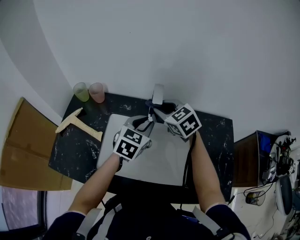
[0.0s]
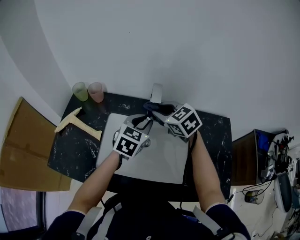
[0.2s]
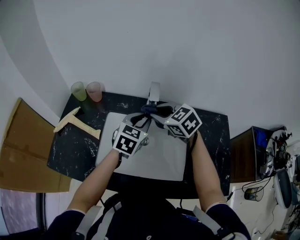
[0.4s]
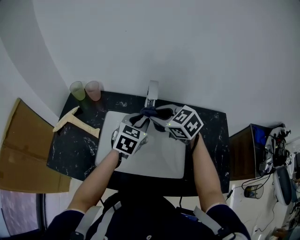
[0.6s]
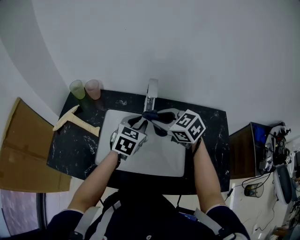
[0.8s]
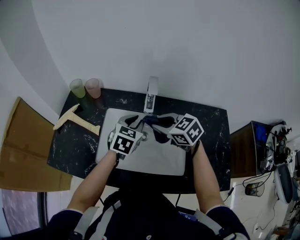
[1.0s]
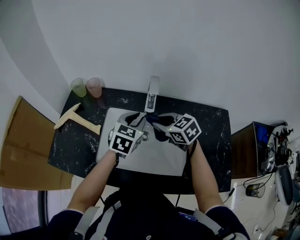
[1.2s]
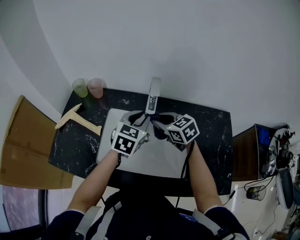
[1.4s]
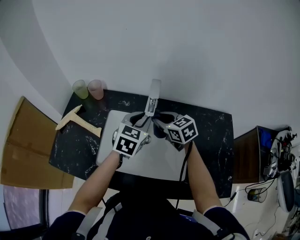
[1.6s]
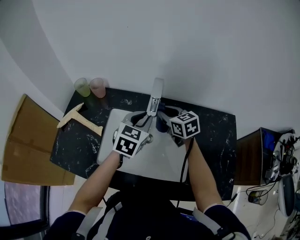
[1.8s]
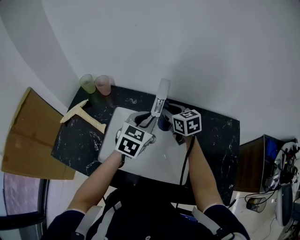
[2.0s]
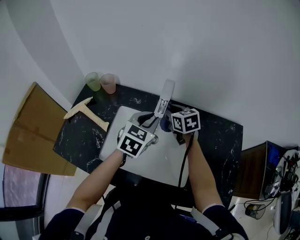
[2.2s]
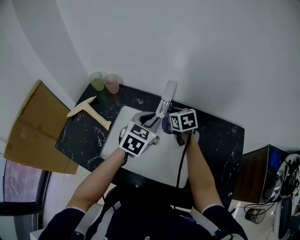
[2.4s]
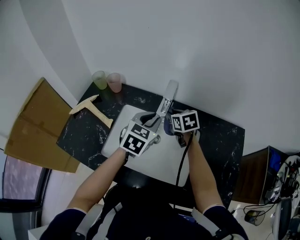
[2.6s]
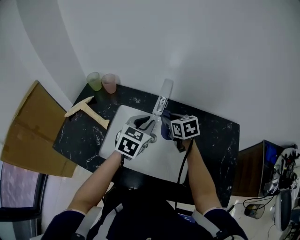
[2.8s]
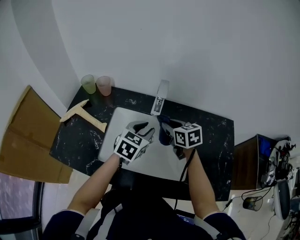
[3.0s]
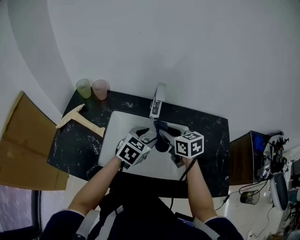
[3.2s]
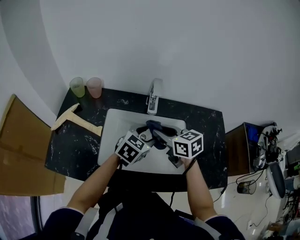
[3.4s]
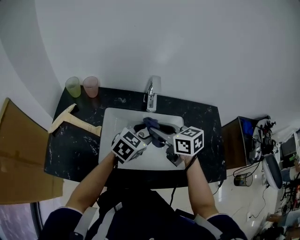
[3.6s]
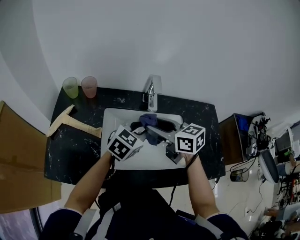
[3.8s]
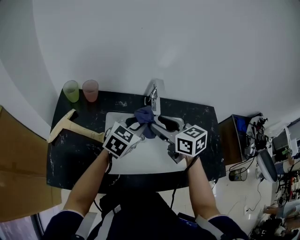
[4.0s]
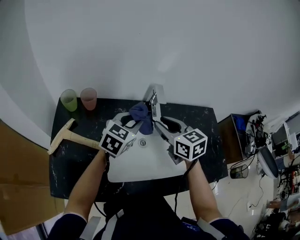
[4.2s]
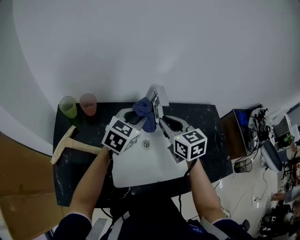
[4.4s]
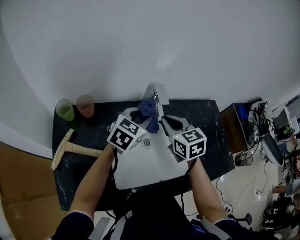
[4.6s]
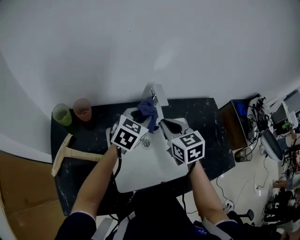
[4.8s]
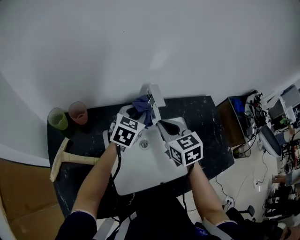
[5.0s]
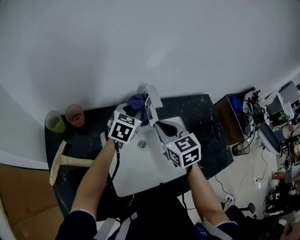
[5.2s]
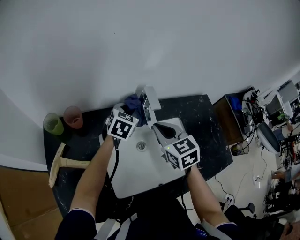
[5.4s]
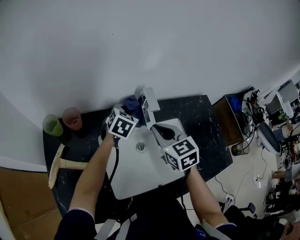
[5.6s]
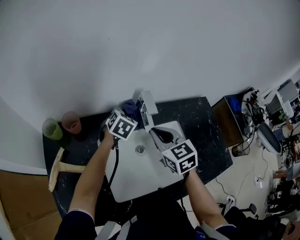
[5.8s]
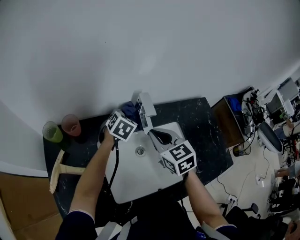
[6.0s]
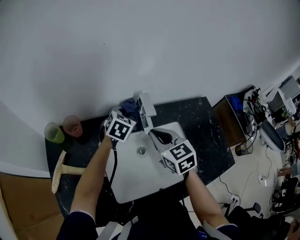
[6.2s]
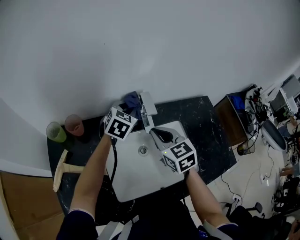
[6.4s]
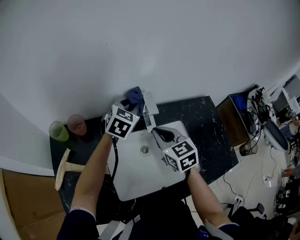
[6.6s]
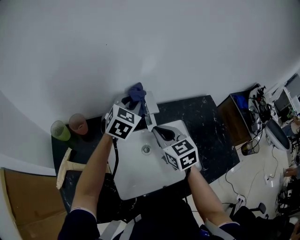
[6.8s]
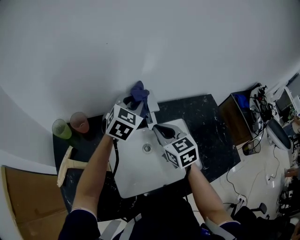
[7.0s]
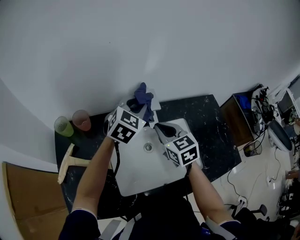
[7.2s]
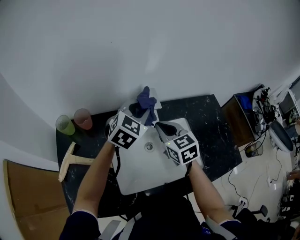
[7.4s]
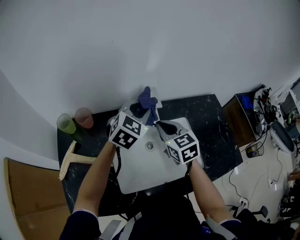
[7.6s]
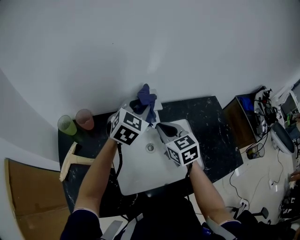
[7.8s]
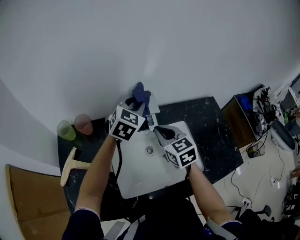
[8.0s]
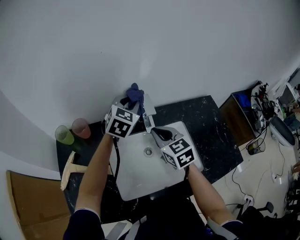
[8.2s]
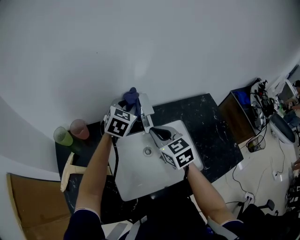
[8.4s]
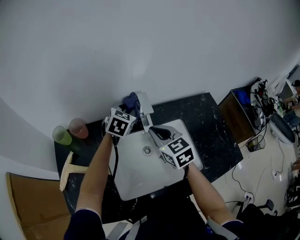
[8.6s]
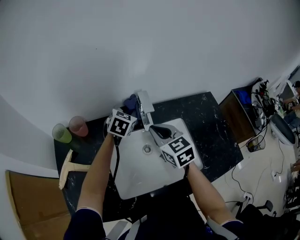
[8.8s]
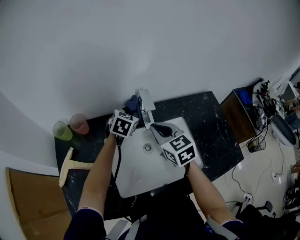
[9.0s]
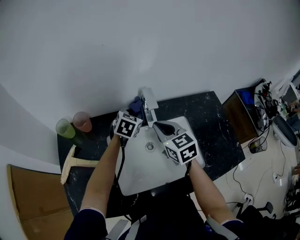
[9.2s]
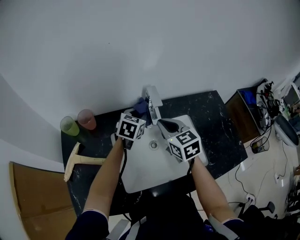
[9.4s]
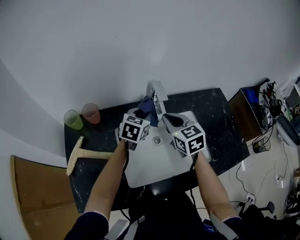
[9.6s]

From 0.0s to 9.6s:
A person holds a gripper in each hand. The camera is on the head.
From 0.0s to 1.6s: The right gripper heads downward, covering about 5 cm.
From 1.6s to 3.2s: The grippers both shift backward by about 5 cm. The left gripper opens up.
From 3.2s to 4.8s: The left gripper goes roughly 10 cm forward and to the left, and closes up. The right gripper travels backward and back again, roughly 5 cm each way, swivels about 30 degrees, and opens and closes again.
From 4.8s to 6.4s: The left gripper moves forward, approximately 10 cm, and travels downward and back again, roughly 10 cm each way.
From 6.4s to 8.0s: The left gripper shifts some 10 cm upward.
From 8.0s to 9.6s: The left gripper shifts about 10 cm downward and backward, and turns by approximately 20 degrees.

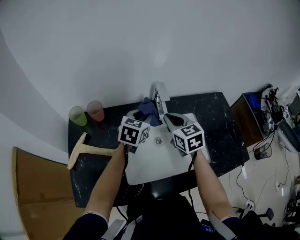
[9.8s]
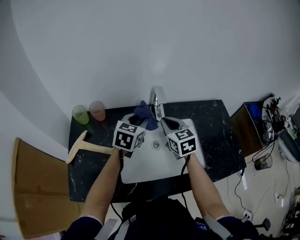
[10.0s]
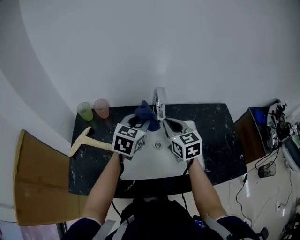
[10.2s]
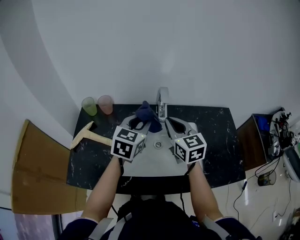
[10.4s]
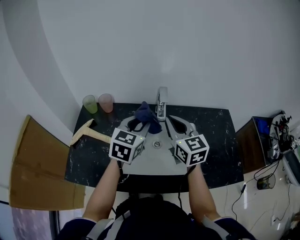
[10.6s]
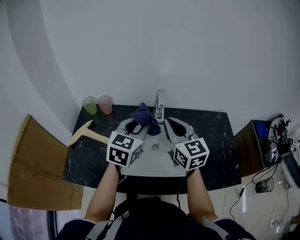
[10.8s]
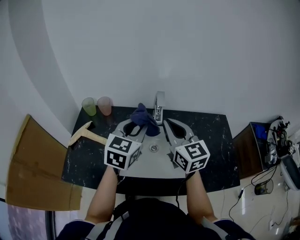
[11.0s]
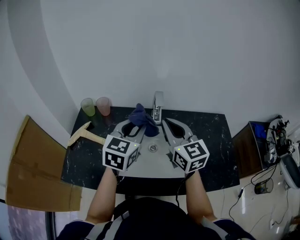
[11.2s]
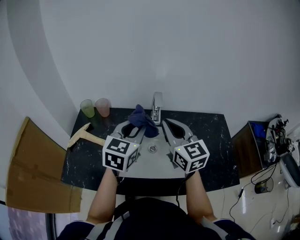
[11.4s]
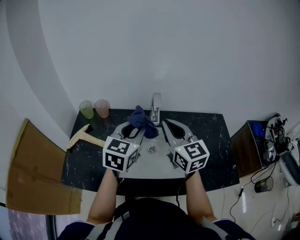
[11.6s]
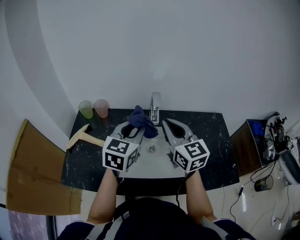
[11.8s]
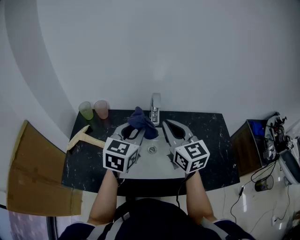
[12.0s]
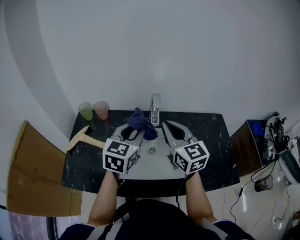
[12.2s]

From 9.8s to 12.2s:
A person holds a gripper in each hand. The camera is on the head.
From 9.8s to 11.0s: The grippers both shift upward and backward by approximately 15 cm. The right gripper rotates roughly 30 degrees, while the left gripper swivels approximately 20 degrees.
From 11.0s to 12.2s: Both grippers stay about where they are.

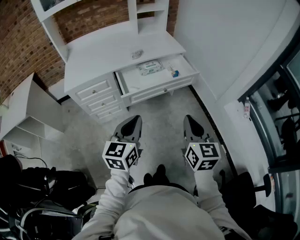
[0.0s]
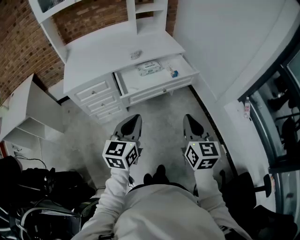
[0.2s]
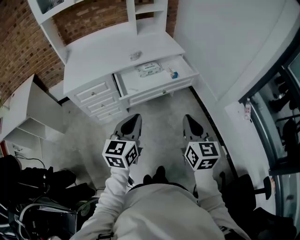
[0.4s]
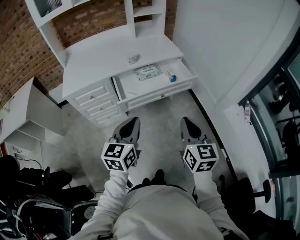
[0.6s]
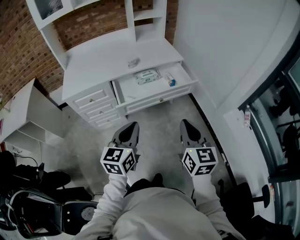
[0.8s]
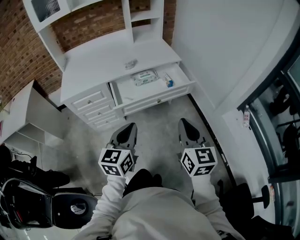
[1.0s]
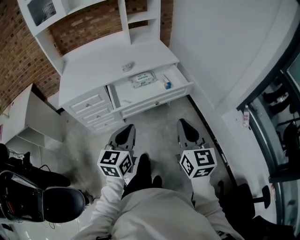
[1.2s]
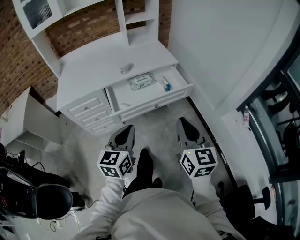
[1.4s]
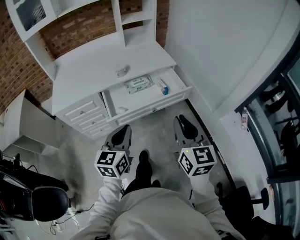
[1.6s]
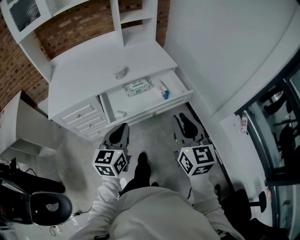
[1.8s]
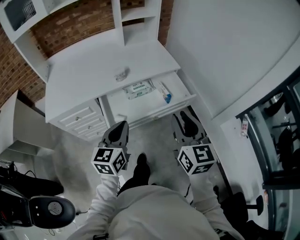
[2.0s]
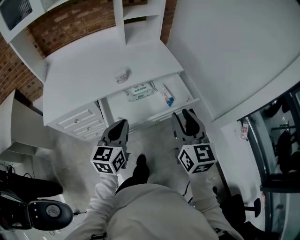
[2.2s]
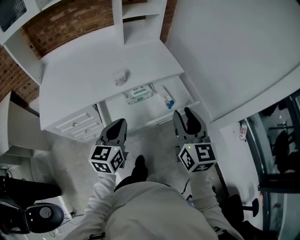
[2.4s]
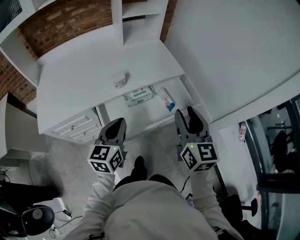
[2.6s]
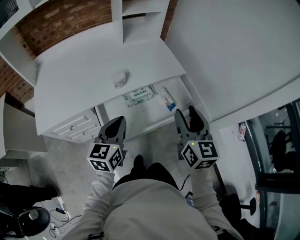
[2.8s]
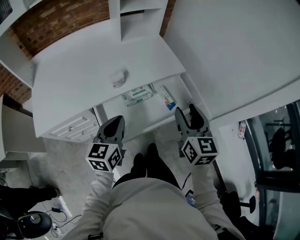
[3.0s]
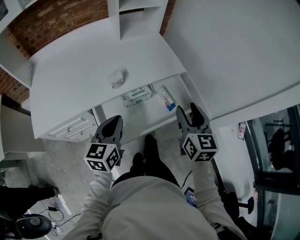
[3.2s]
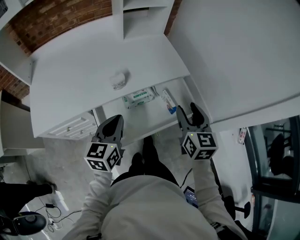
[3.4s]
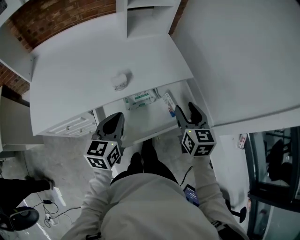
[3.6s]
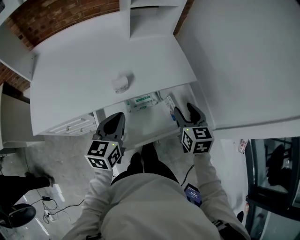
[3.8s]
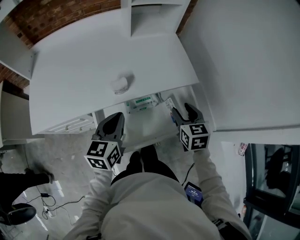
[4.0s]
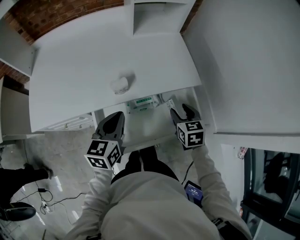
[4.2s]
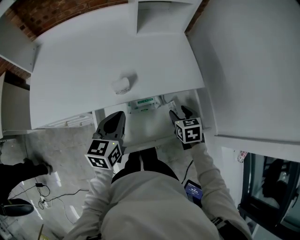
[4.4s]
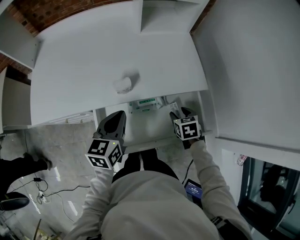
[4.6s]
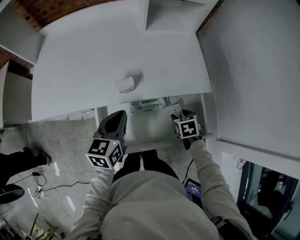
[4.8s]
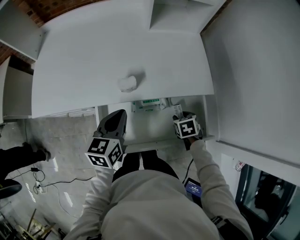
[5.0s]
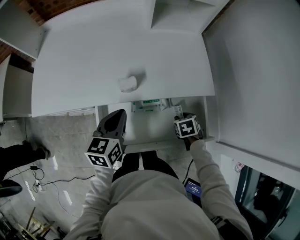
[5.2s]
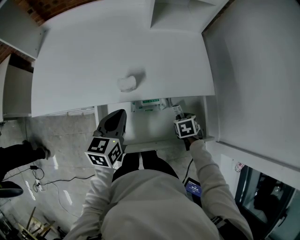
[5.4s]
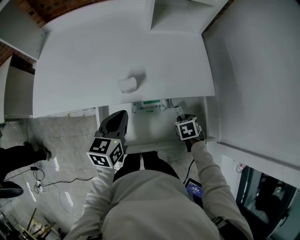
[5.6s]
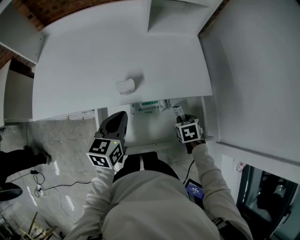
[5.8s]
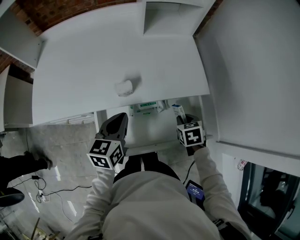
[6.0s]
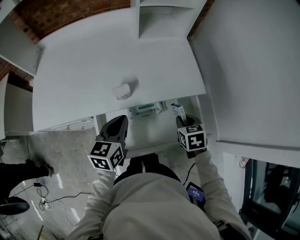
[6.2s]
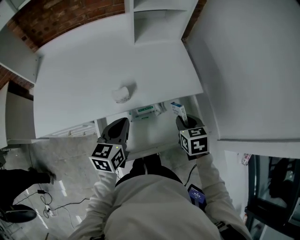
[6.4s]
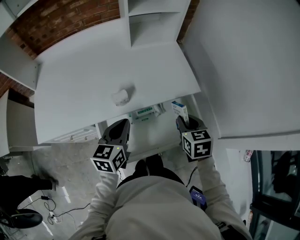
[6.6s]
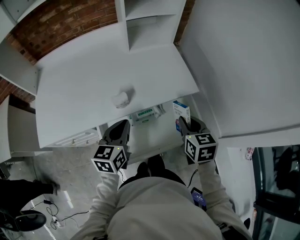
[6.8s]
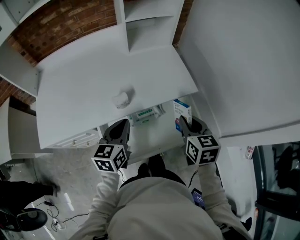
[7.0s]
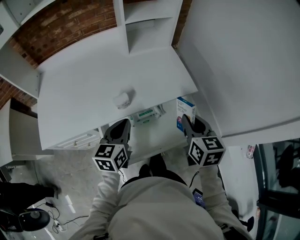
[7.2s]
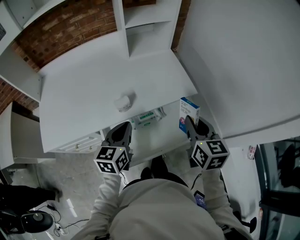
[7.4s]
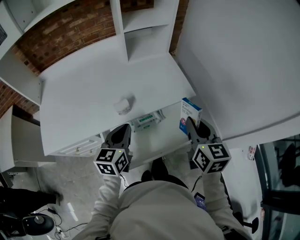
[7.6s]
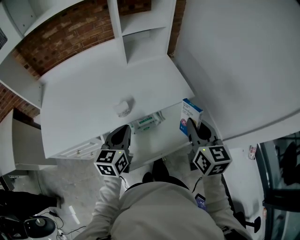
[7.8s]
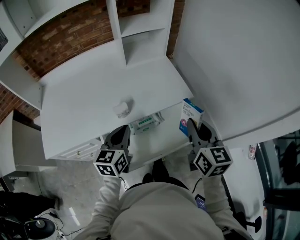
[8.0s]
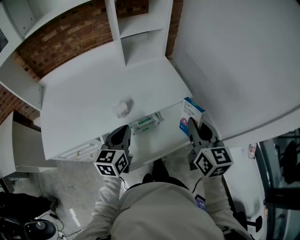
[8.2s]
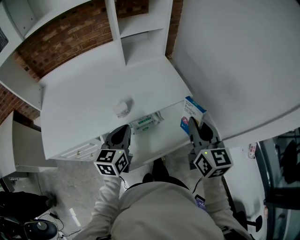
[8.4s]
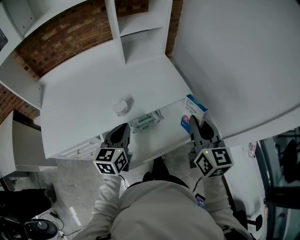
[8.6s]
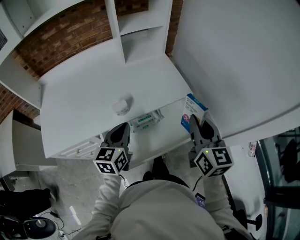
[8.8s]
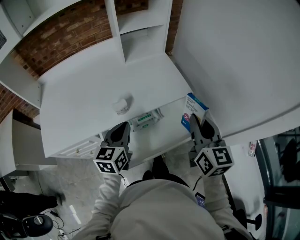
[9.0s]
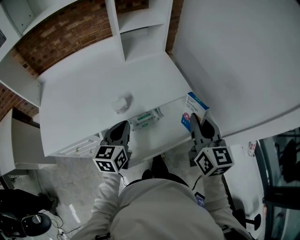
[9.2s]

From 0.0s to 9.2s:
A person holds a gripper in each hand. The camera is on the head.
From 0.0s to 1.6s: The two grippers go approximately 10 cm forward.
From 1.6s to 3.0s: Both grippers move forward, roughly 25 cm. The right gripper opens its fingers.
From 3.0s to 4.6s: The right gripper heads downward and forward, covering approximately 30 cm, and tilts its fingers roughly 40 degrees downward, while the left gripper goes some 15 cm forward and downward.
From 4.6s to 6.2s: The right gripper shifts approximately 5 cm upward, and closes its fingers.
From 6.2s to 7.6s: The right gripper goes about 20 cm upward, and angles its fingers upward, by roughly 40 degrees.
From 7.6s to 9.2s: The right gripper moves some 5 cm.

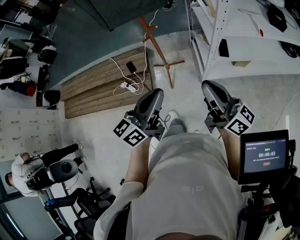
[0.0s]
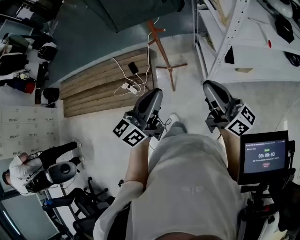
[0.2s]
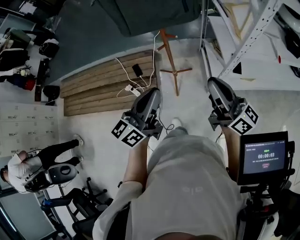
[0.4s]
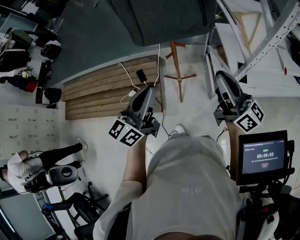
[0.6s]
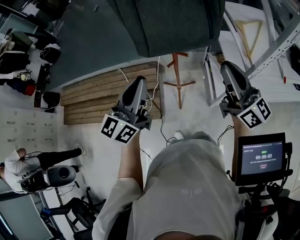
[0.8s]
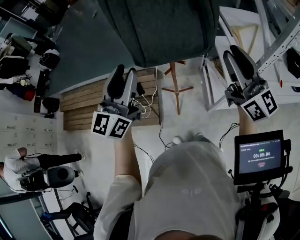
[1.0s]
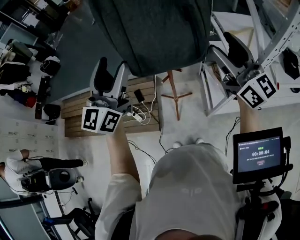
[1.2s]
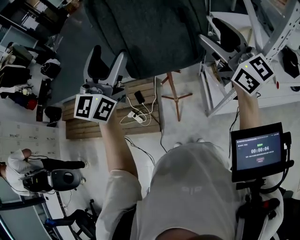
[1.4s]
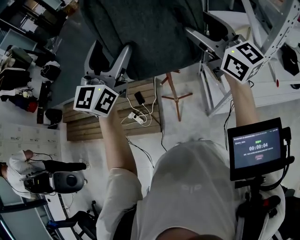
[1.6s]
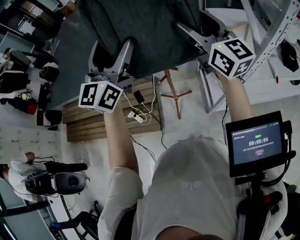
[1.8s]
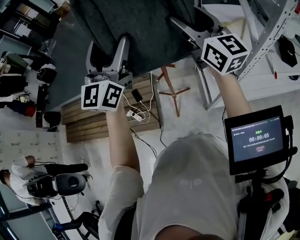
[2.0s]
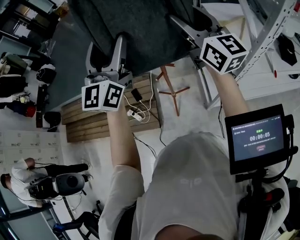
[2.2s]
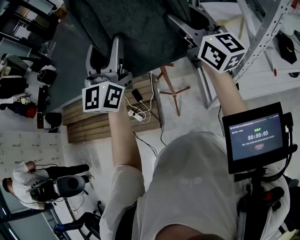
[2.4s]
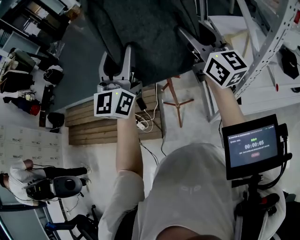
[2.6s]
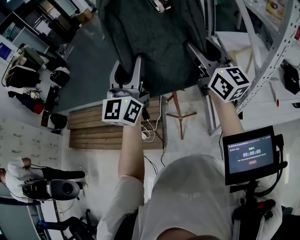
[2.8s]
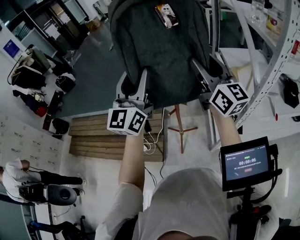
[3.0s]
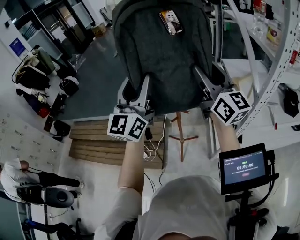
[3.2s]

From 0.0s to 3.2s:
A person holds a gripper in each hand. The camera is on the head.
From 0.0s to 1.6s: The grippers both shift forward and upward by about 40 cm. The right gripper swivels some 30 degrees, and opens up. The left gripper rotates around the line of its fingers by approximately 40 degrees, clockwise from behind, and opens.
From 1.6s to 3.2s: The left gripper closes its fingers.
